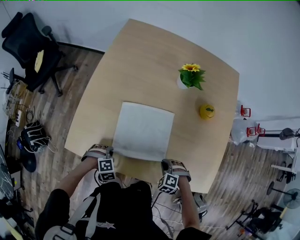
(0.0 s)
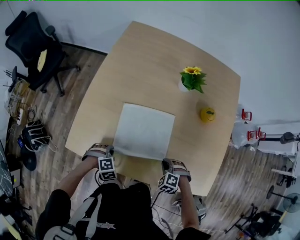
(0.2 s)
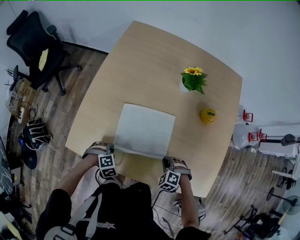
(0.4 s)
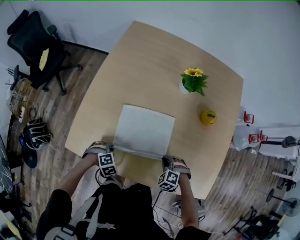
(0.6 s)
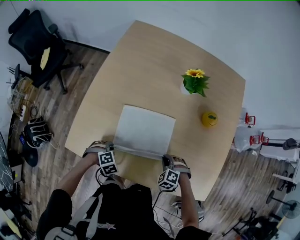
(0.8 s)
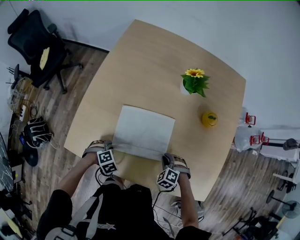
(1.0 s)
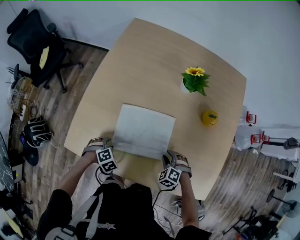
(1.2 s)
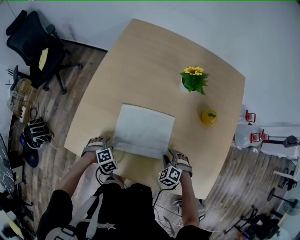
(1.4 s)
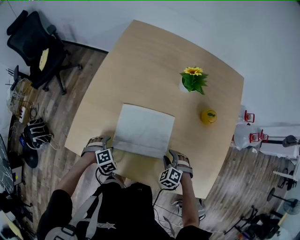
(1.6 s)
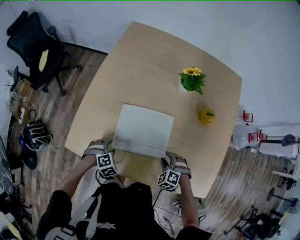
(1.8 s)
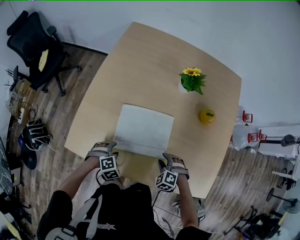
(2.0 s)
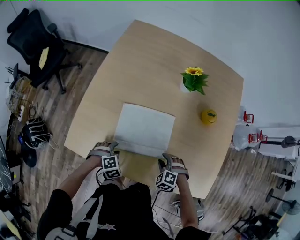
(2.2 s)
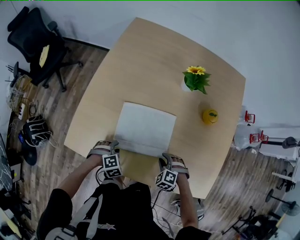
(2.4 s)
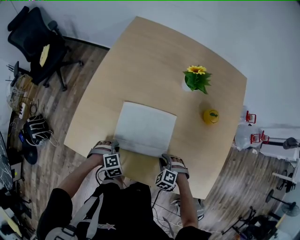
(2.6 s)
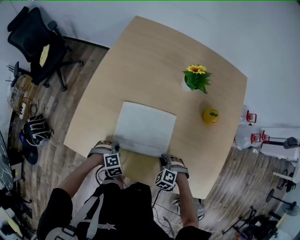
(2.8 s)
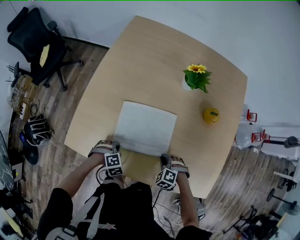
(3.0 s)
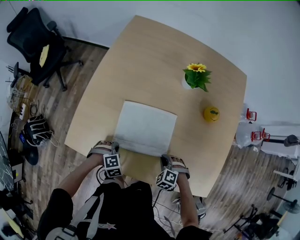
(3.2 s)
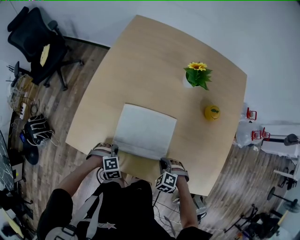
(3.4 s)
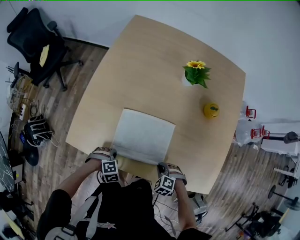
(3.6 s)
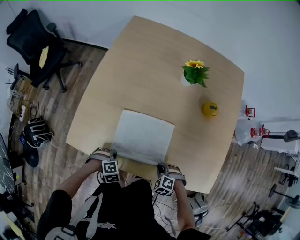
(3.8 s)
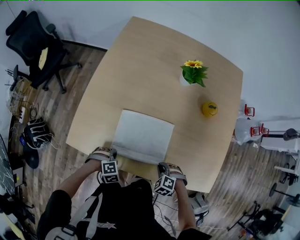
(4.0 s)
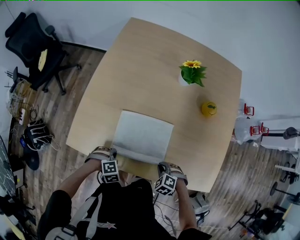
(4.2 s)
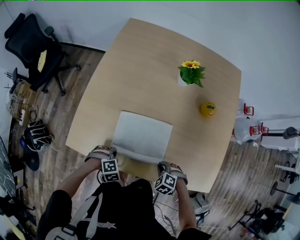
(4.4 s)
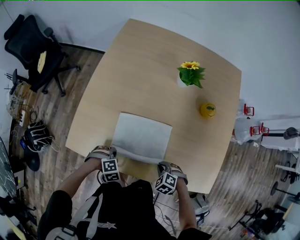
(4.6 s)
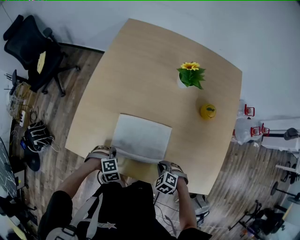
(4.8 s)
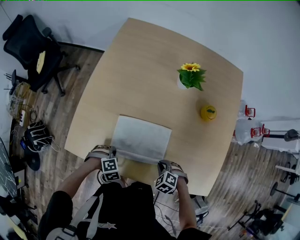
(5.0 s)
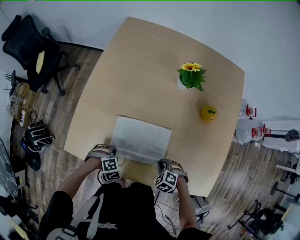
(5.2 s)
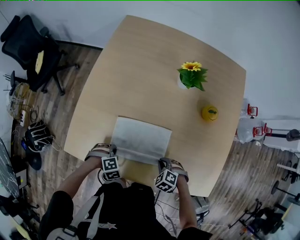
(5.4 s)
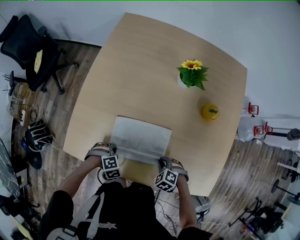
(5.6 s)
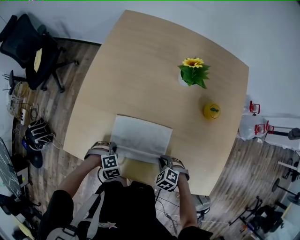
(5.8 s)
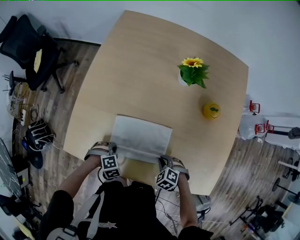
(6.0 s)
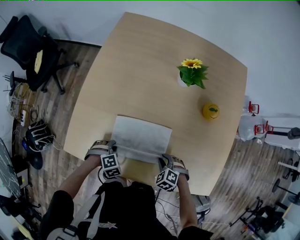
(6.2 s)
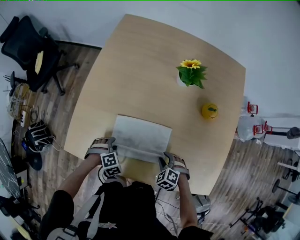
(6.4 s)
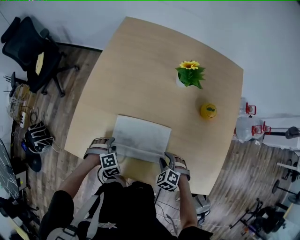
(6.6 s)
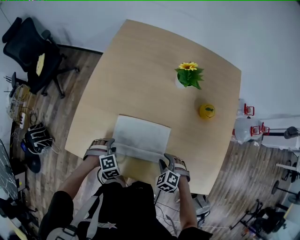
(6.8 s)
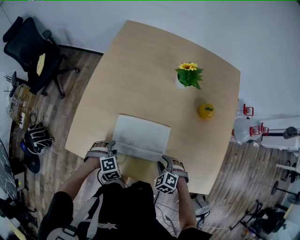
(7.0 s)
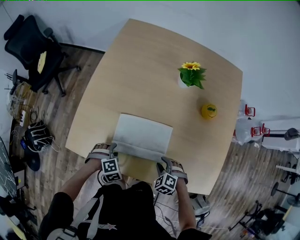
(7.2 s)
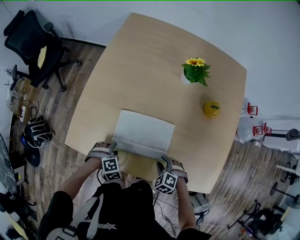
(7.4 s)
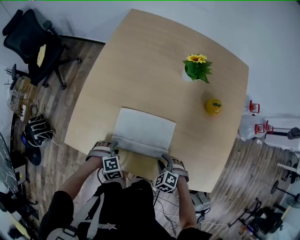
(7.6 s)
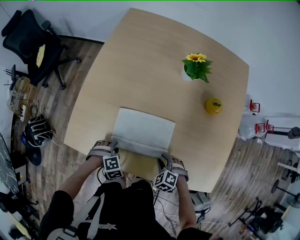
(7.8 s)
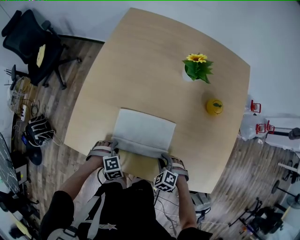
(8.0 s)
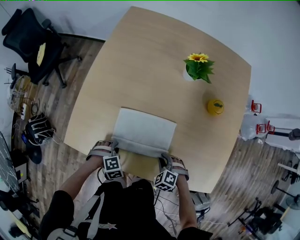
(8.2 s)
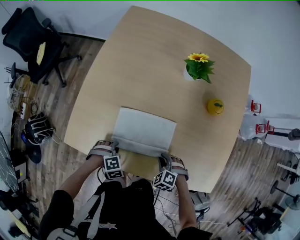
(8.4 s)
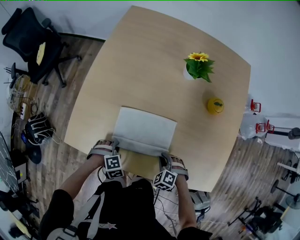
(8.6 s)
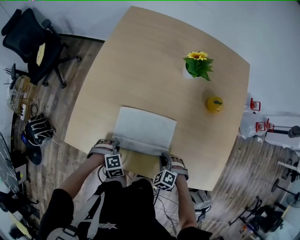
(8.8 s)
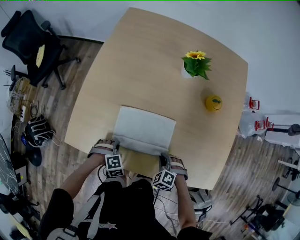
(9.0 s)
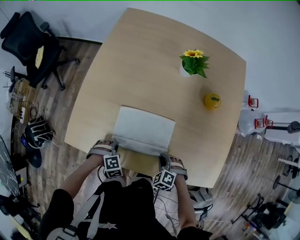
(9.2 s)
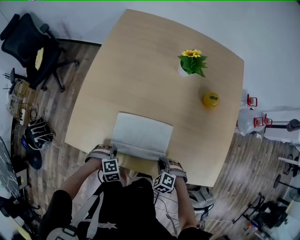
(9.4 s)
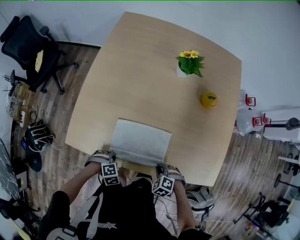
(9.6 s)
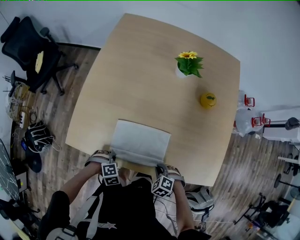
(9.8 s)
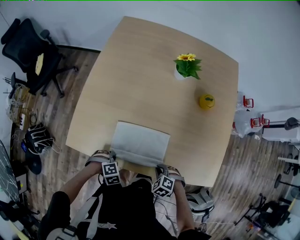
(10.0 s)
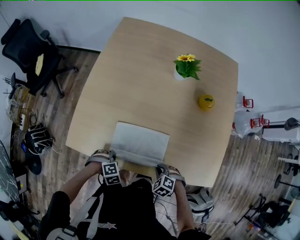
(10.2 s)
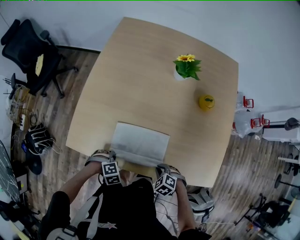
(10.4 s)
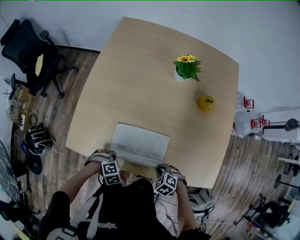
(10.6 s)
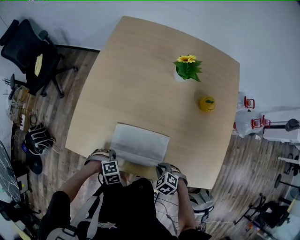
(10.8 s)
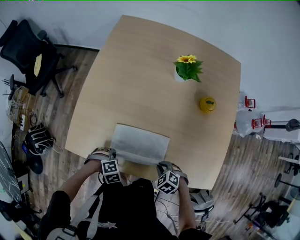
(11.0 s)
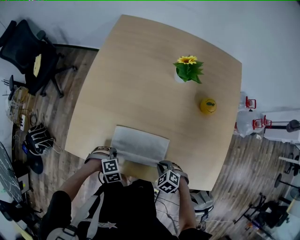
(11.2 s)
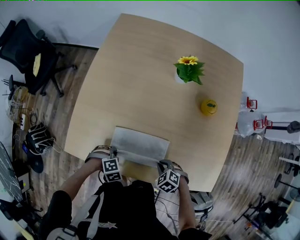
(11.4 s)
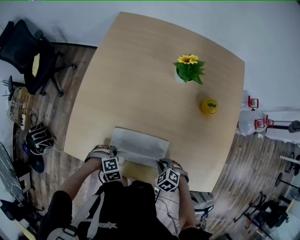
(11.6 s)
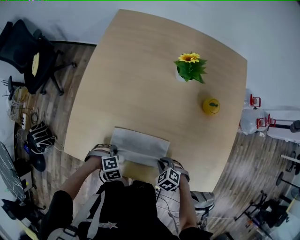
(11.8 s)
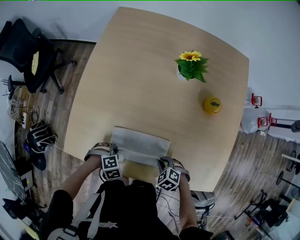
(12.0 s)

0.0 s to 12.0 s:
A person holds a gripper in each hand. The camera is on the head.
0.0 to 1.6 s: The right gripper changes place by some 10 cm, and opens its fingers.
1.6 to 3.0 s: The right gripper closes up.
3.0 to 4.4 s: The right gripper changes place by about 10 cm.
4.4 to 6.0 s: The right gripper shifts by some 5 cm.
6.0 to 7.6 s: The right gripper opens.
7.6 to 9.0 s: The right gripper closes.
9.0 to 10.4 s: The right gripper shifts by some 10 cm, and swivels some 20 degrees.
10.4 to 12.0 s: The right gripper changes place by some 10 cm.

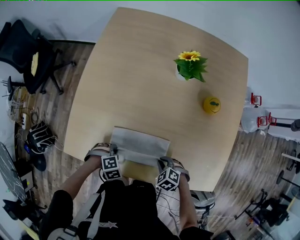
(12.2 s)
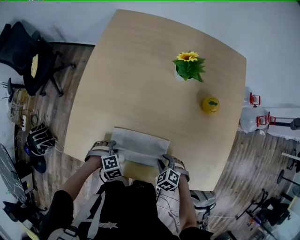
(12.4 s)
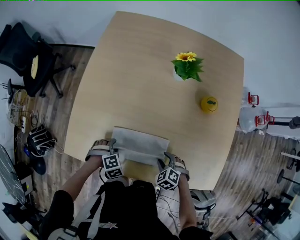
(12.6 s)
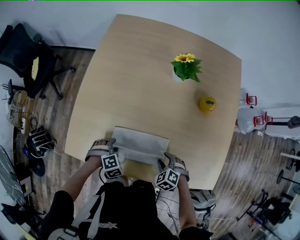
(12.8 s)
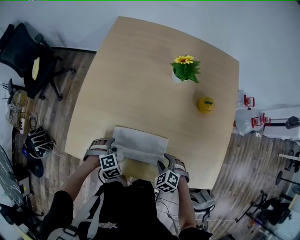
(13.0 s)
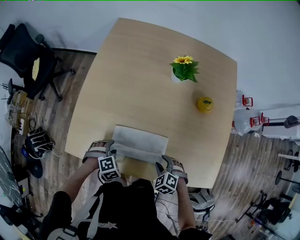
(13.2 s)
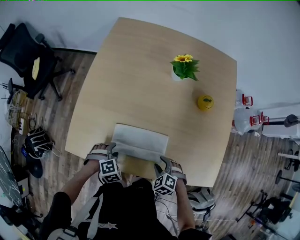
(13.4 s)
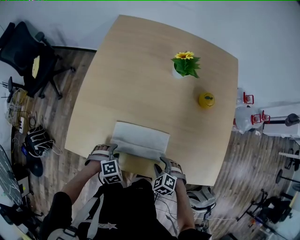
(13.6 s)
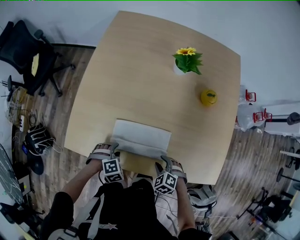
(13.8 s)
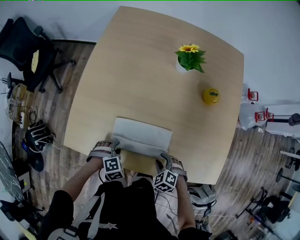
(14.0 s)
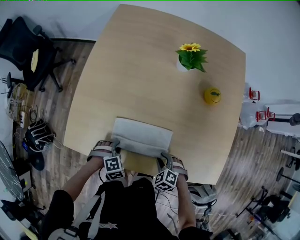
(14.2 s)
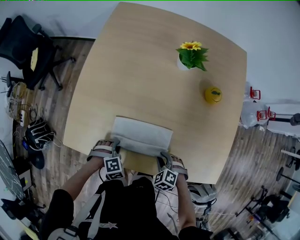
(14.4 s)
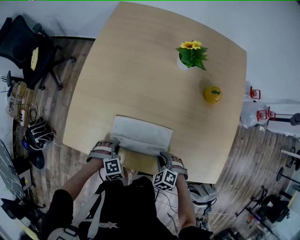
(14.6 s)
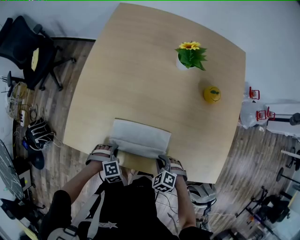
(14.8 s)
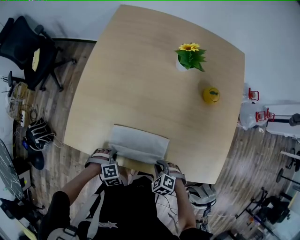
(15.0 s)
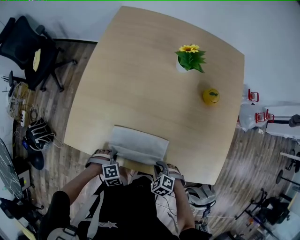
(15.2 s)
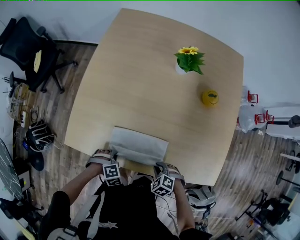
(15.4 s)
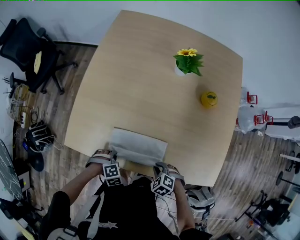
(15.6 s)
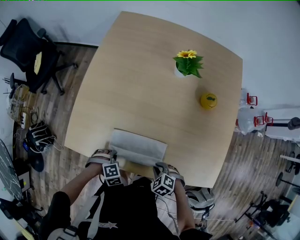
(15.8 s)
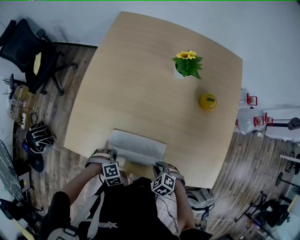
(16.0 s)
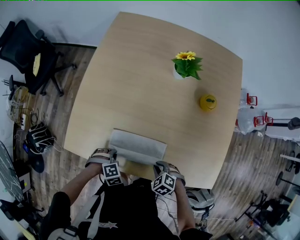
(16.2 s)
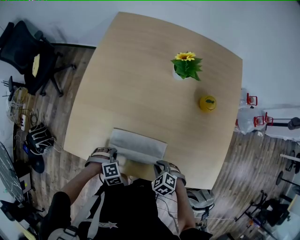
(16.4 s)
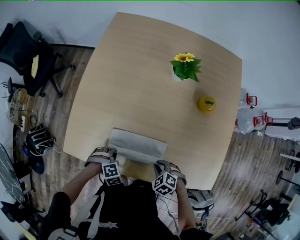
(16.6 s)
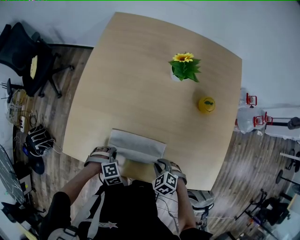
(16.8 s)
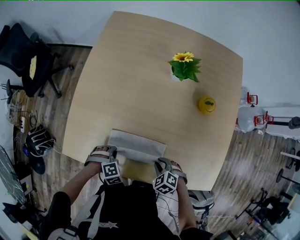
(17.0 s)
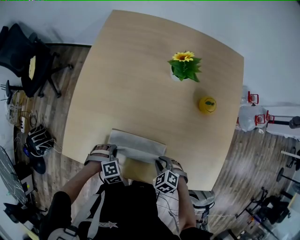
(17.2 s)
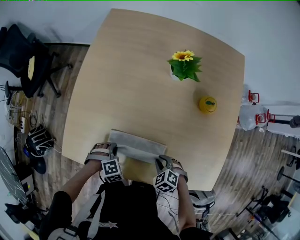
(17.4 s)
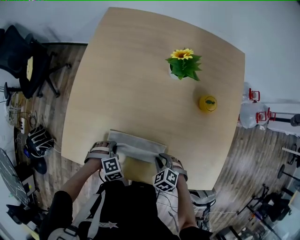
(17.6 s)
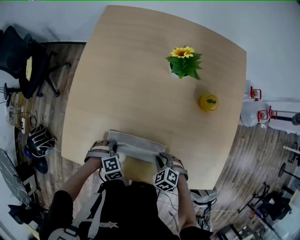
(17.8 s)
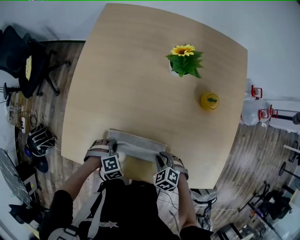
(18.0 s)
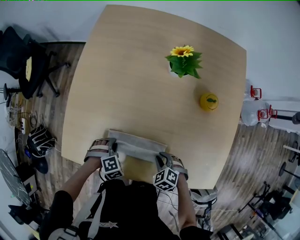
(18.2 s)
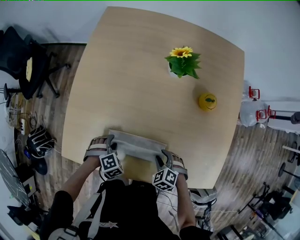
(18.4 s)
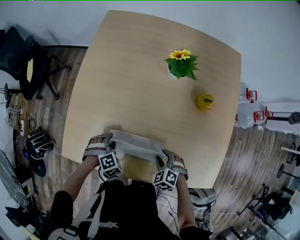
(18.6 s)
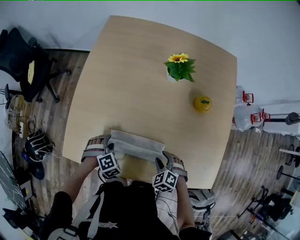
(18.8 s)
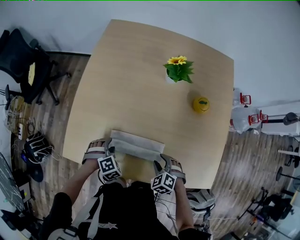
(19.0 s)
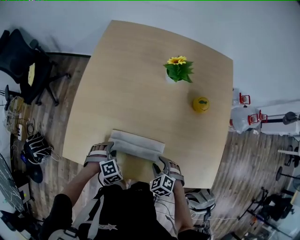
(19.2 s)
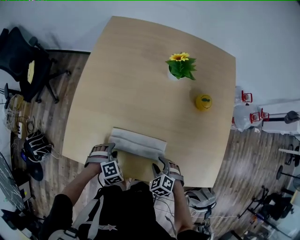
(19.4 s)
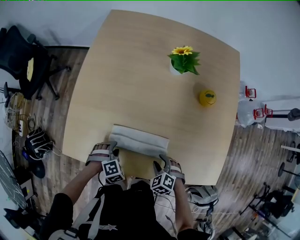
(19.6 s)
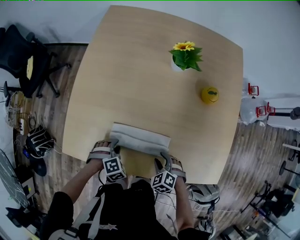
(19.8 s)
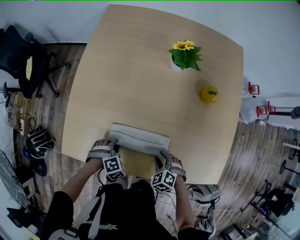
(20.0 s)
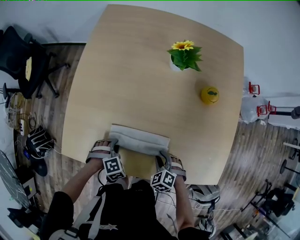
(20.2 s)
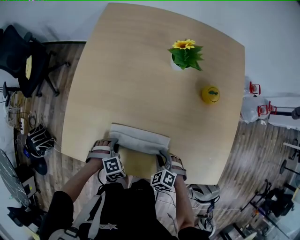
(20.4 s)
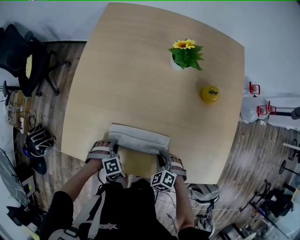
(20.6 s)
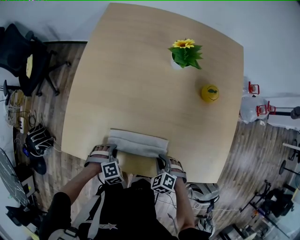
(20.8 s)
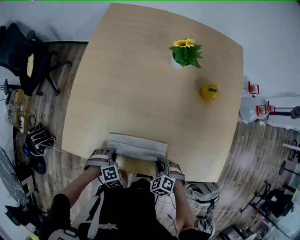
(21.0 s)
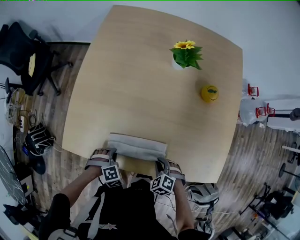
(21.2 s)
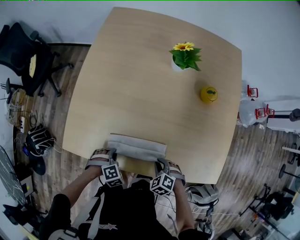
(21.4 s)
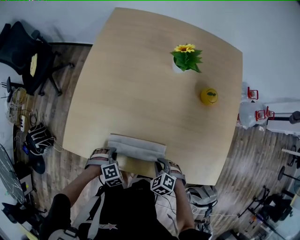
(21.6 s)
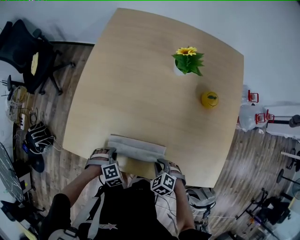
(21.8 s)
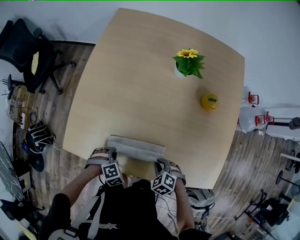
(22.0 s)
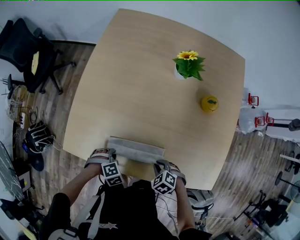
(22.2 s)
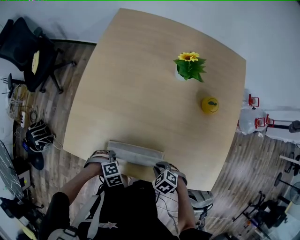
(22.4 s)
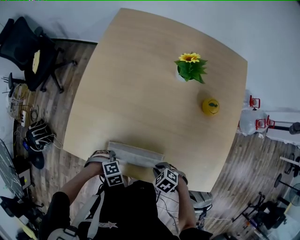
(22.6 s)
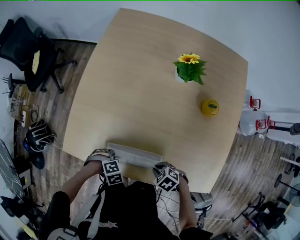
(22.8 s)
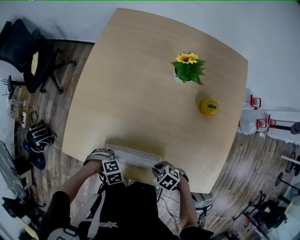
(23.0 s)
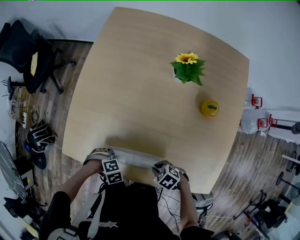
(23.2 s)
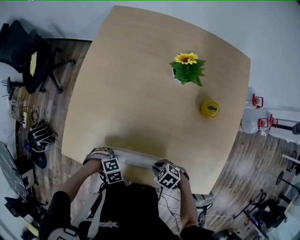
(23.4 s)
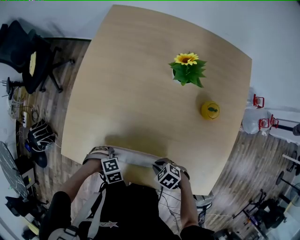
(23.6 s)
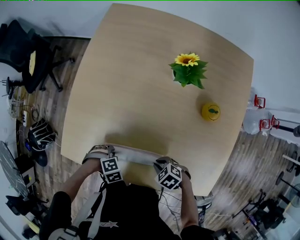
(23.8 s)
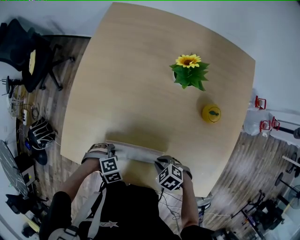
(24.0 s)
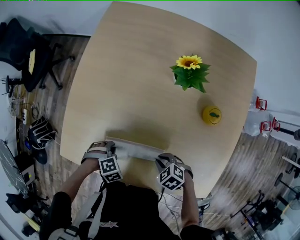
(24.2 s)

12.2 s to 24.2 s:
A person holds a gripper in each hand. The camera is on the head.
12.2 to 13.8 s: The right gripper opens up.
13.8 to 15.2 s: The right gripper closes its fingers.
15.2 to 16.6 s: The right gripper changes place by approximately 5 cm.
16.6 to 18.2 s: The right gripper moves some 5 cm.
19.8 to 21.2 s: The right gripper closes its fingers.
21.2 to 22.6 s: The right gripper swivels approximately 30 degrees.
22.6 to 24.2 s: The right gripper shifts by roughly 10 cm.
